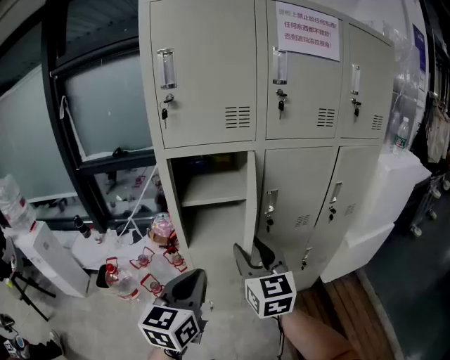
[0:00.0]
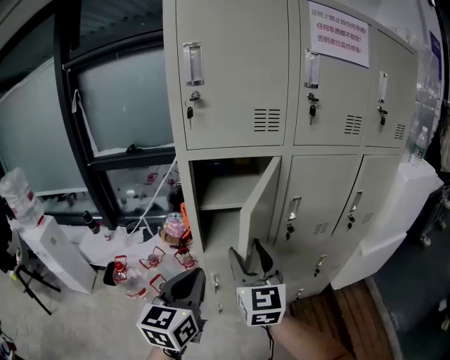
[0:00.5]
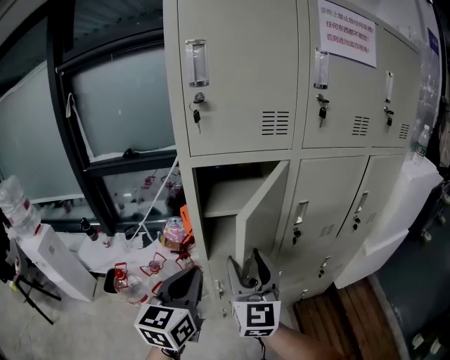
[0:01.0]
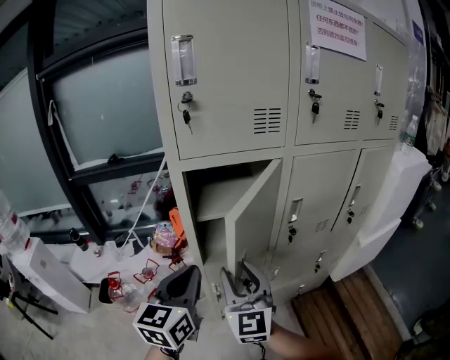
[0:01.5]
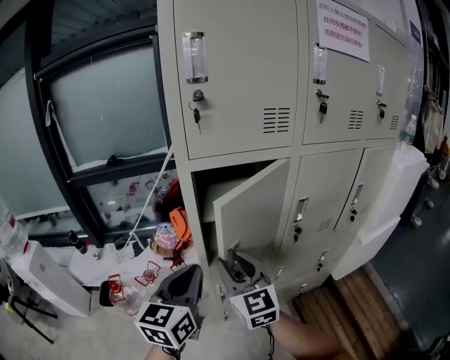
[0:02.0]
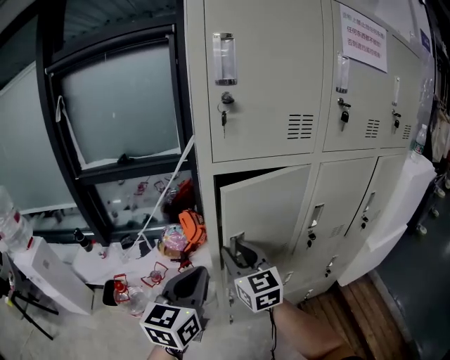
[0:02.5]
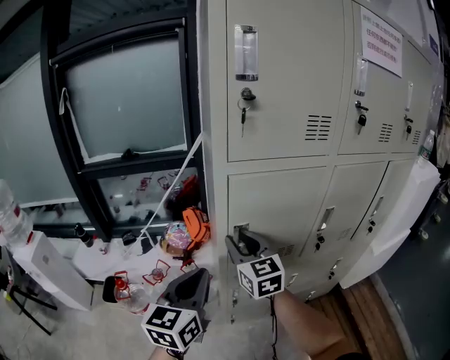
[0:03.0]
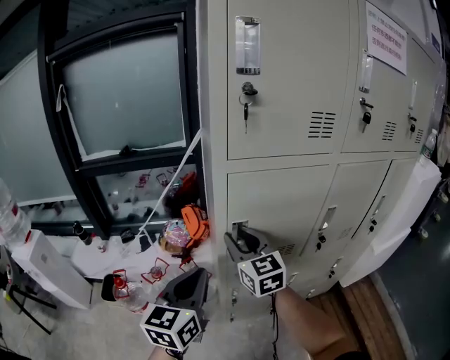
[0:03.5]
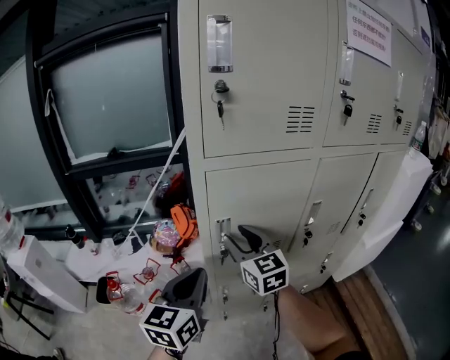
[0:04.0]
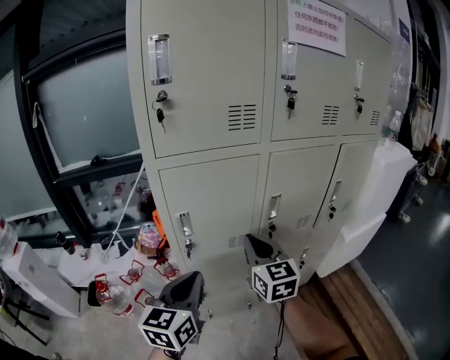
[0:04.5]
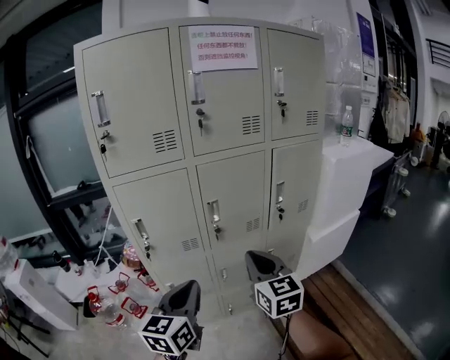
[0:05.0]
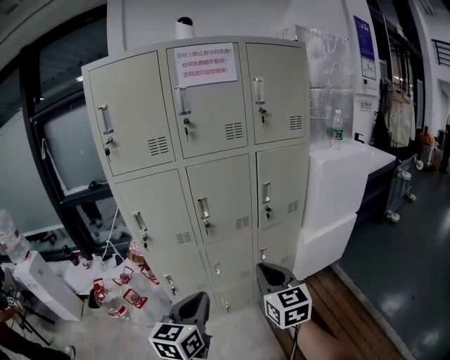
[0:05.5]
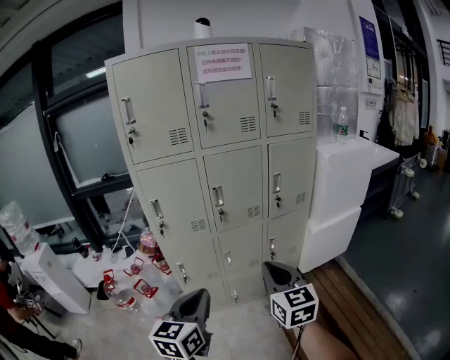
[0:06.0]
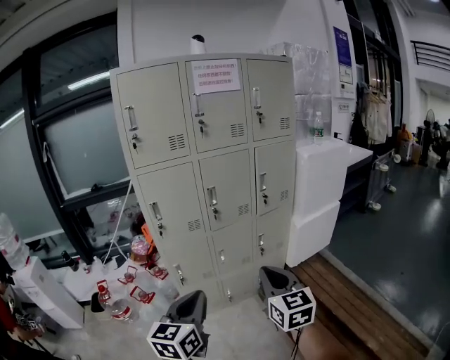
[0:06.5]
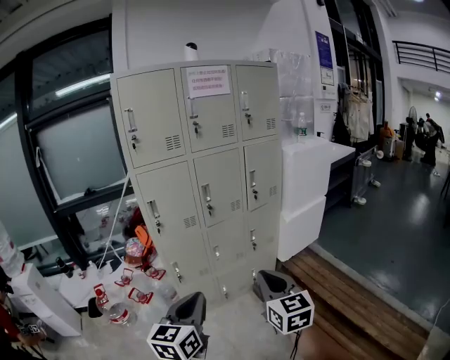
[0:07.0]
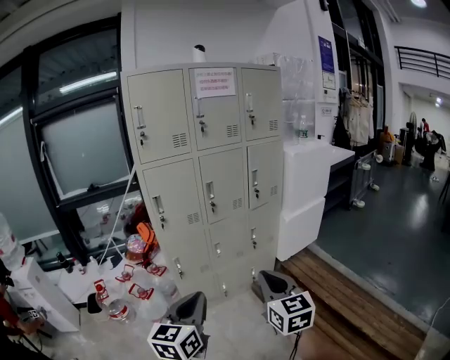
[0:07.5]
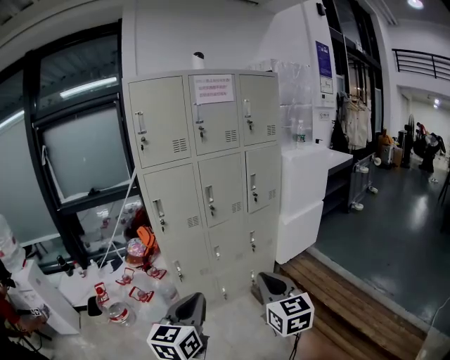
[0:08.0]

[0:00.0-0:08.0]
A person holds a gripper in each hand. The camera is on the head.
0:00.0 to 0:02.0: The grippers both shift to the left and forward by about 15 cm.
0:02.0 to 0:04.0: The right gripper heads forward, covering approximately 10 cm.
0:04.0 to 0:06.0: Both grippers are carried to the right and backward, approximately 50 cm. The right gripper closes up.
0:06.0 to 0:08.0: The right gripper shifts approximately 25 cm backward. The left gripper moves backward and to the left, about 20 cm.

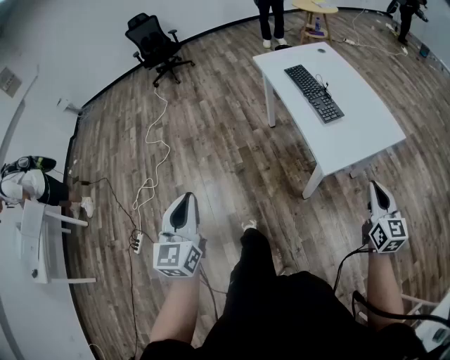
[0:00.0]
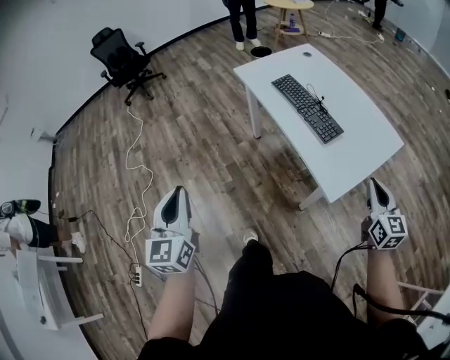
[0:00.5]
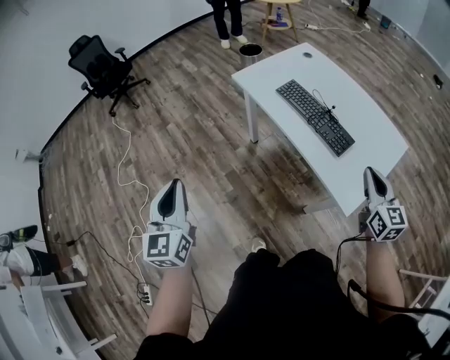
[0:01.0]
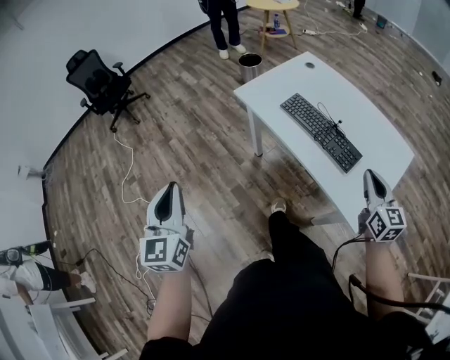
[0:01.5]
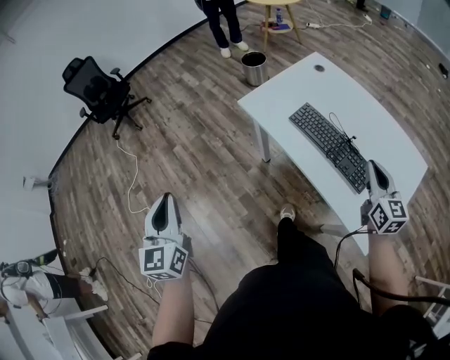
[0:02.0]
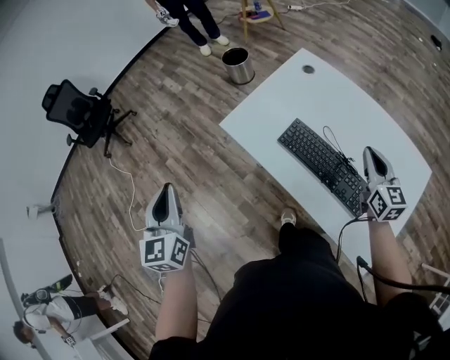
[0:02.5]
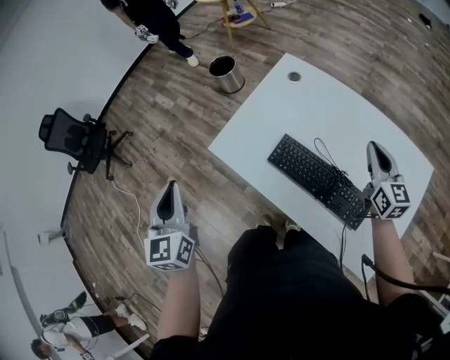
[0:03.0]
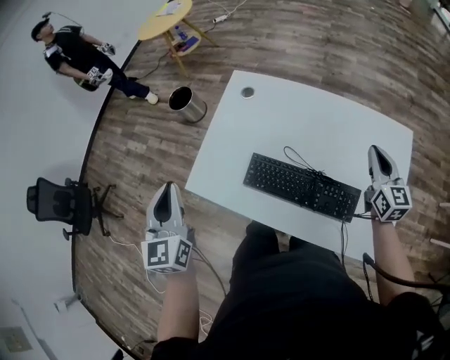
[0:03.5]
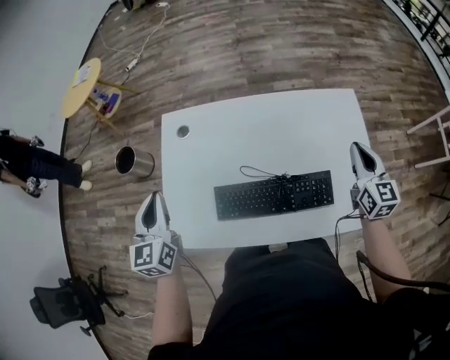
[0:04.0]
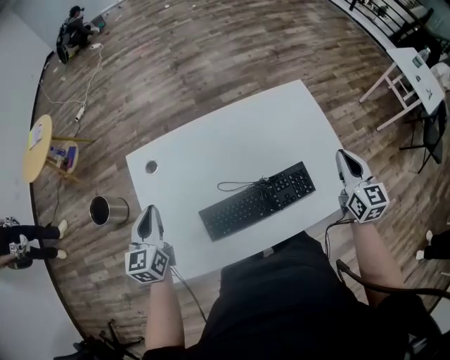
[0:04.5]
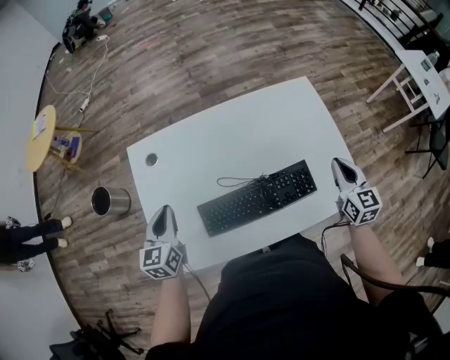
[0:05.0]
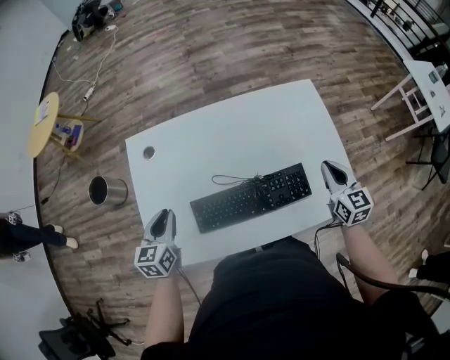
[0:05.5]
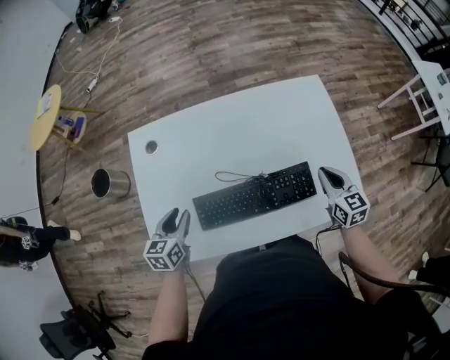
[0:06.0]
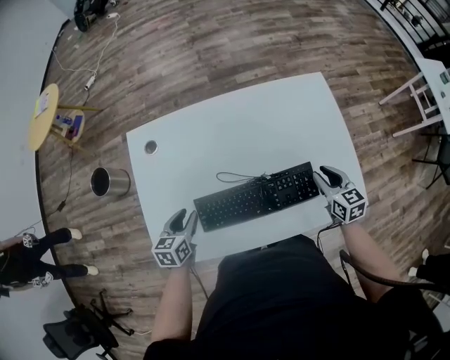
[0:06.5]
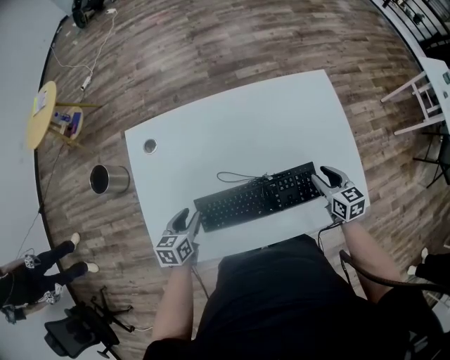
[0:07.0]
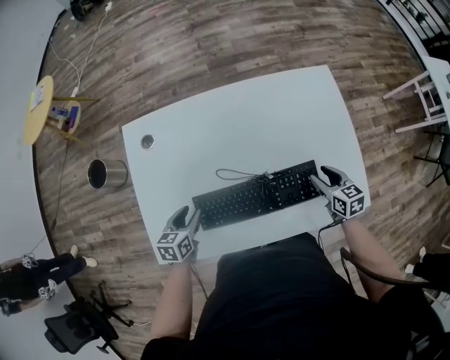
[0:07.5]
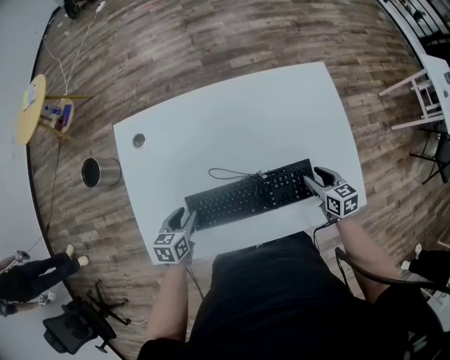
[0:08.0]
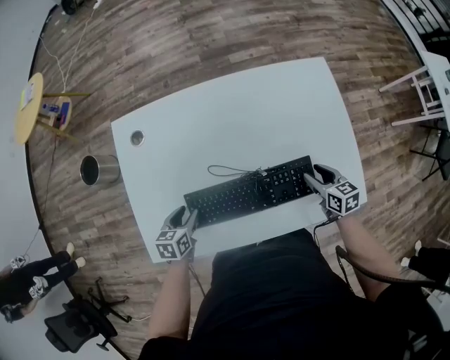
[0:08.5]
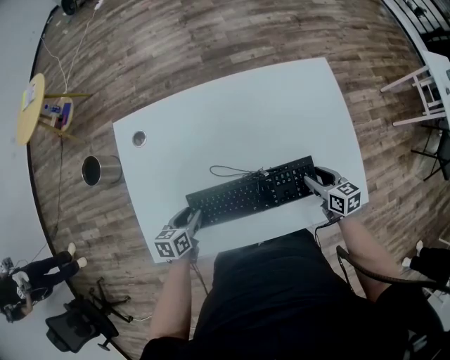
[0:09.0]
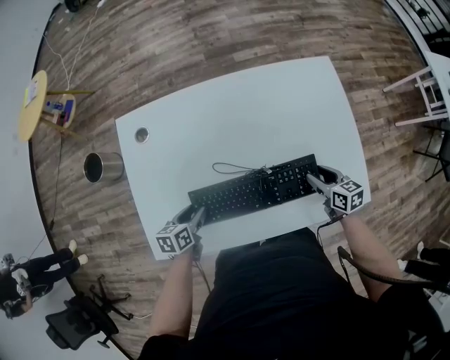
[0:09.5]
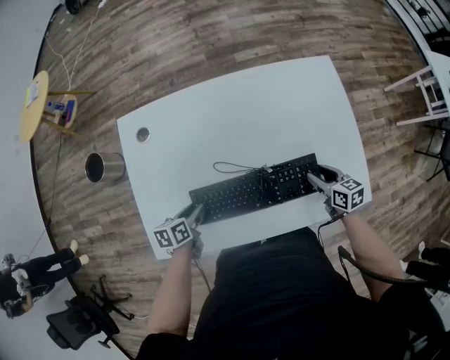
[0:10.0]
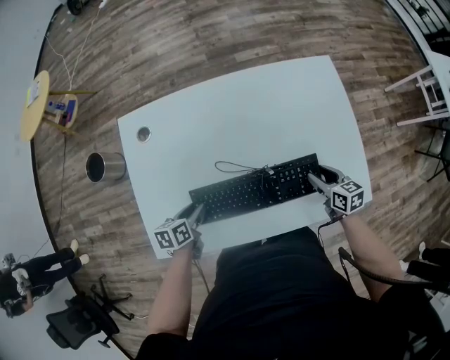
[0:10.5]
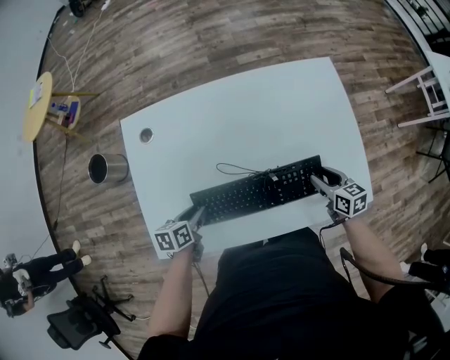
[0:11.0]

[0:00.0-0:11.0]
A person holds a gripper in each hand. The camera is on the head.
0:00.0 to 0:02.0: Both grippers move forward, approximately 40 cm.
0:02.0 to 0:03.5: The right gripper moves approximately 20 cm, and swivels approximately 30 degrees. Meanwhile the left gripper changes place by some 40 cm, and turns by roughly 30 degrees.
0:03.5 to 0:05.5: The left gripper travels downward by roughly 20 cm, and swivels roughly 50 degrees. The right gripper shifts by about 15 cm, and changes its angle by approximately 30 degrees.
0:05.5 to 0:07.5: The two grippers go approximately 10 cm downward. The left gripper turns by about 20 degrees, and opens up. Meanwhile the right gripper swivels roughly 30 degrees, and opens up.
0:07.5 to 0:09.0: The grippers make only small movements.
0:09.0 to 0:11.0: The grippers move only a little.

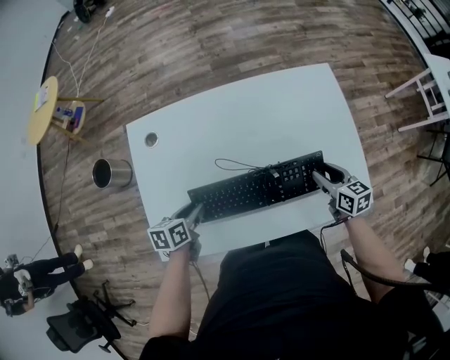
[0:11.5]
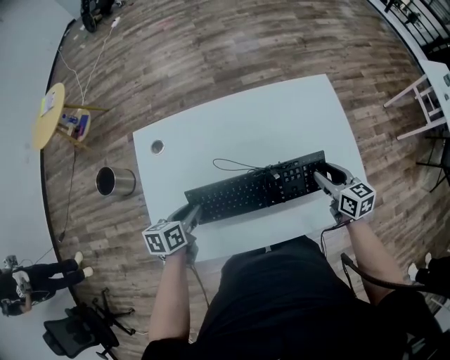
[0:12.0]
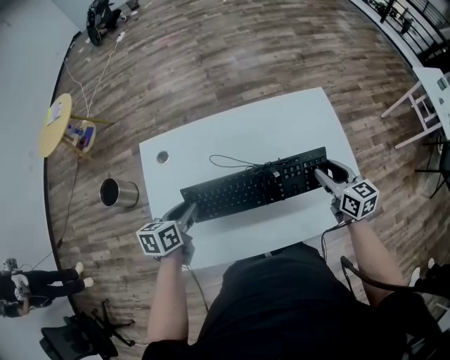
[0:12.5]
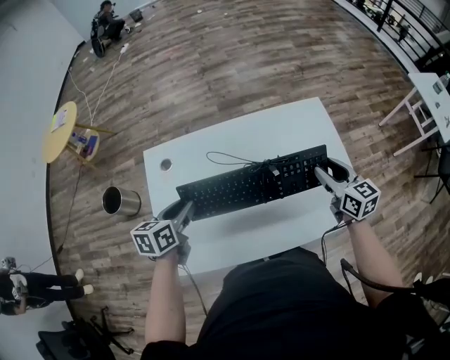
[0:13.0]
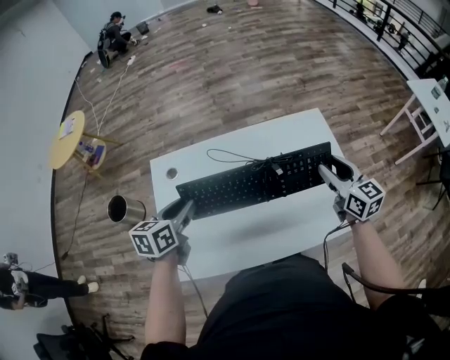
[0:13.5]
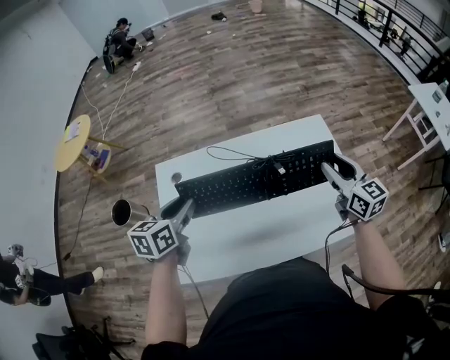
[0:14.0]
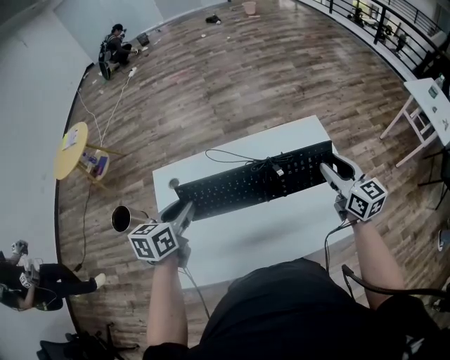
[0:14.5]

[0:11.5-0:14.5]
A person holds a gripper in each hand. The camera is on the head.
0:11.5 to 0:13.0: The right gripper heads upward, covering approximately 15 cm, while the left gripper travels upward and forward by some 15 cm.
0:13.0 to 0:14.5: The grippers both shift upward by some 5 cm.

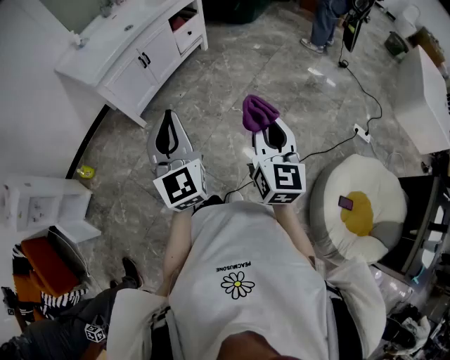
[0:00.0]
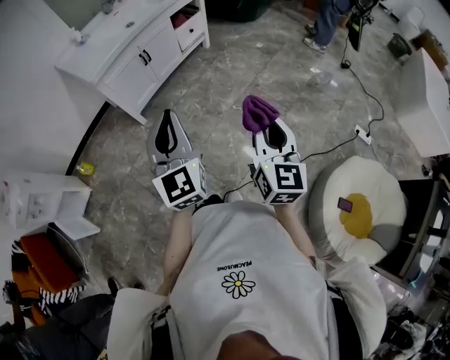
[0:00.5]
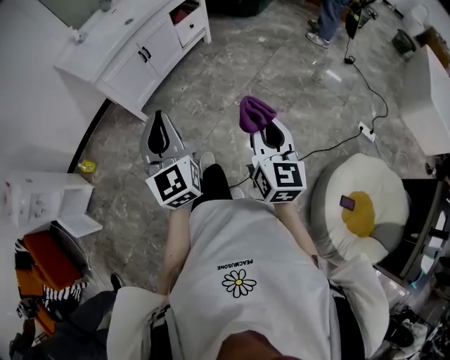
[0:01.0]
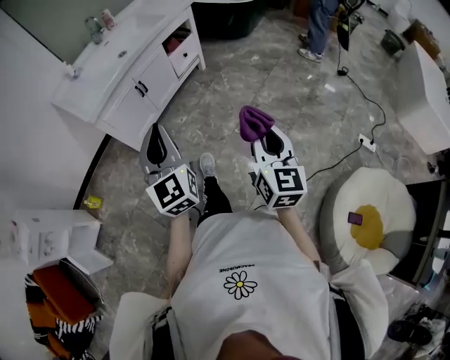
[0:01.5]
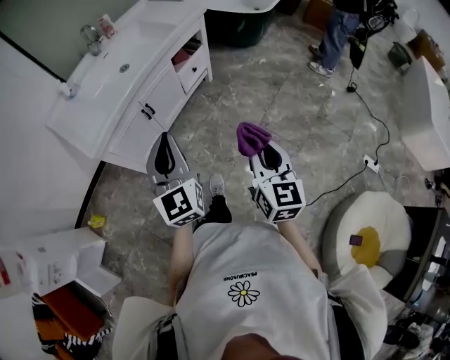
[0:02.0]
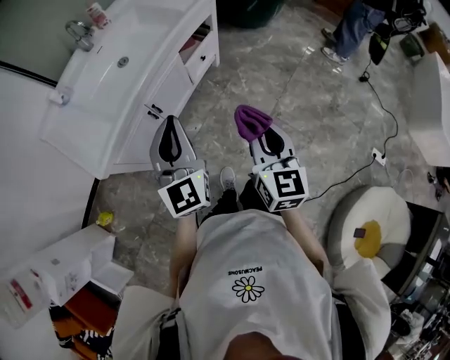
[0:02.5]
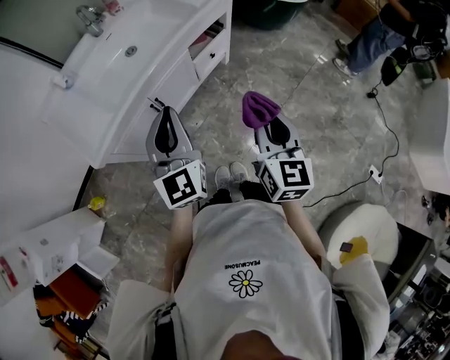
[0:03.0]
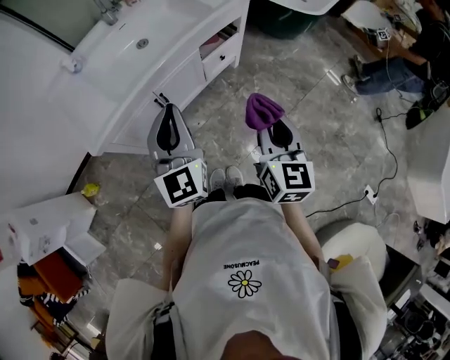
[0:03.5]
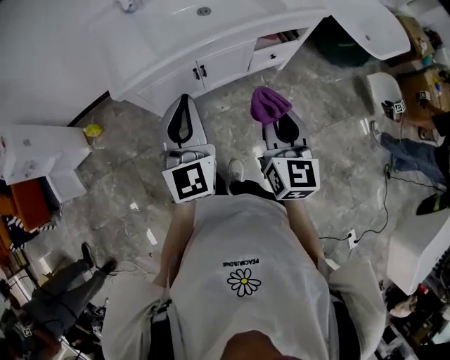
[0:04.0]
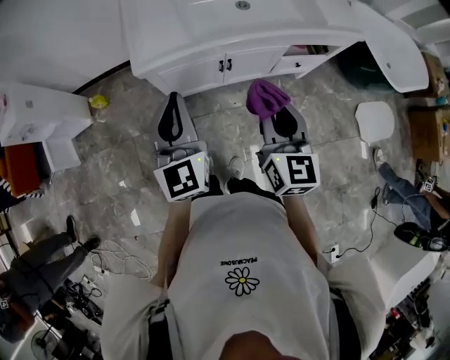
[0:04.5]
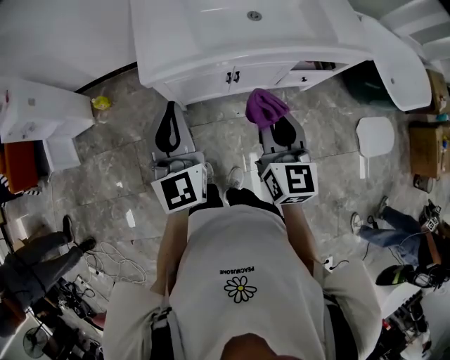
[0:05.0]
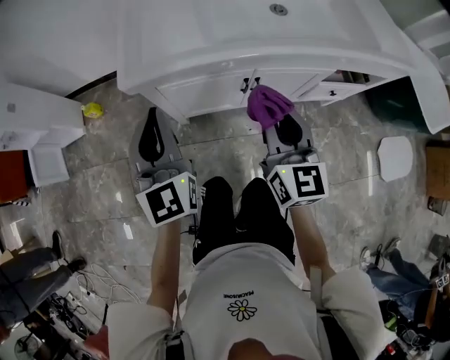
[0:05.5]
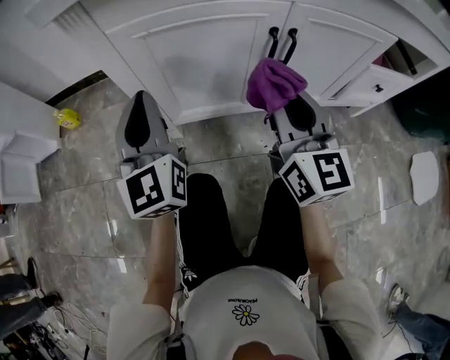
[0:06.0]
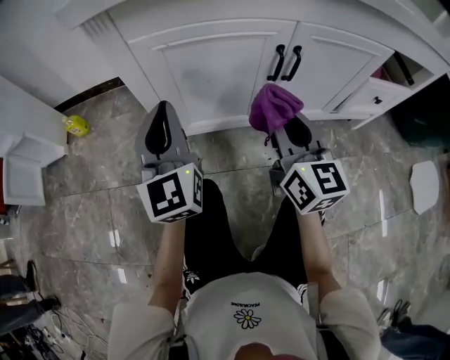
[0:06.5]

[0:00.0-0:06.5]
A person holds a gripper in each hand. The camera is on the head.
0:00.0 to 0:02.0: The two grippers go about 30 cm forward.
0:02.0 to 0:04.5: The left gripper shifts by approximately 20 cm, and turns by about 40 degrees. Meanwhile the right gripper moves some 30 cm, and turns by about 40 degrees.
0:04.5 to 0:06.5: Both grippers travel together downward, about 50 cm.
